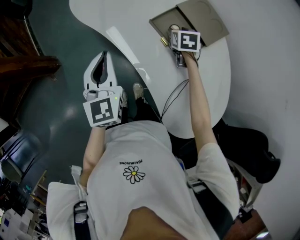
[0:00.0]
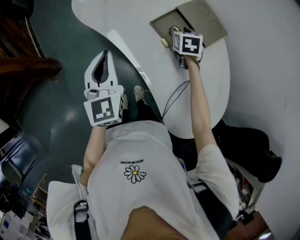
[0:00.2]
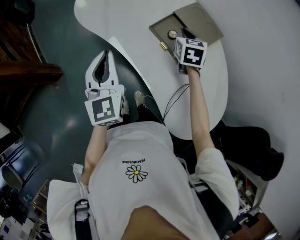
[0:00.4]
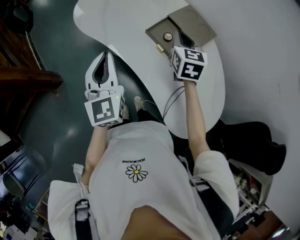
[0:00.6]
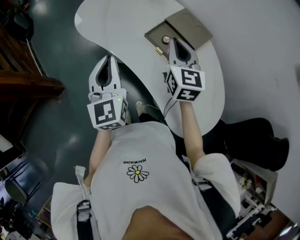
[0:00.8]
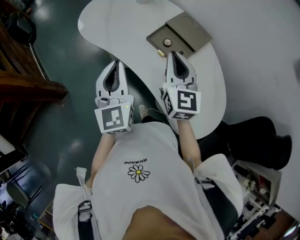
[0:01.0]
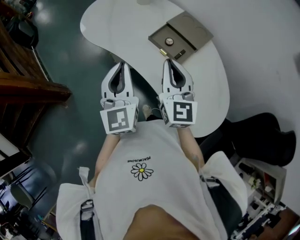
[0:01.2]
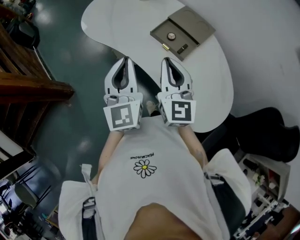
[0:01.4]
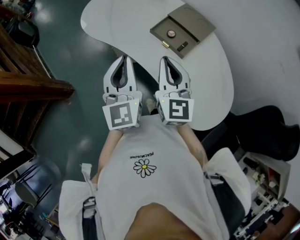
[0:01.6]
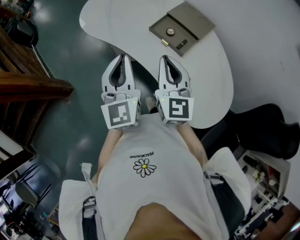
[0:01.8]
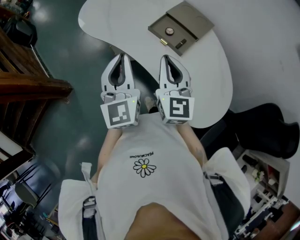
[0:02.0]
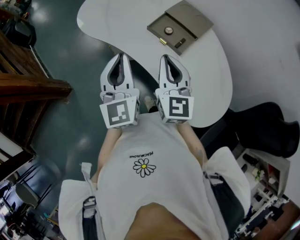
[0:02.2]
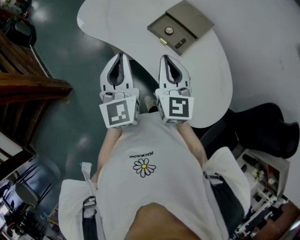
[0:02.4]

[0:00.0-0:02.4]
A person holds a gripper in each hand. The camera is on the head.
0.0 to 1.2 s: The left gripper shifts some 10 cm upward and backward; the right gripper shifts approximately 35 cm upward and backward, angles its fingers upward, by about 50 degrees, and closes.
1.2 to 2.4 s: The grippers move only a little.

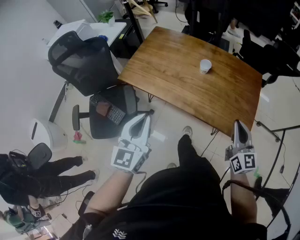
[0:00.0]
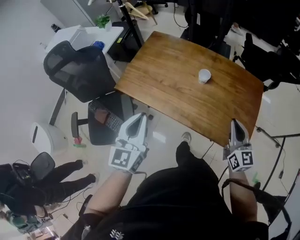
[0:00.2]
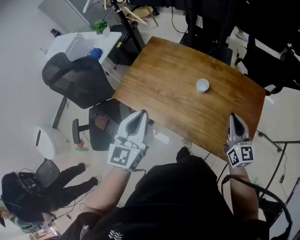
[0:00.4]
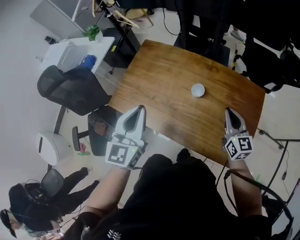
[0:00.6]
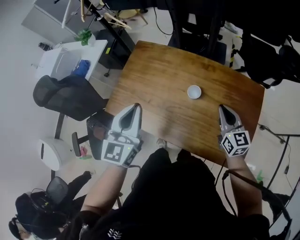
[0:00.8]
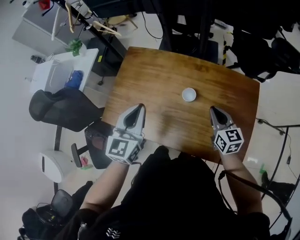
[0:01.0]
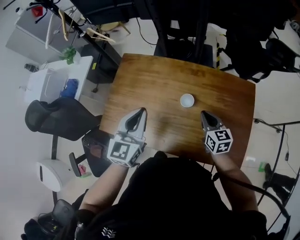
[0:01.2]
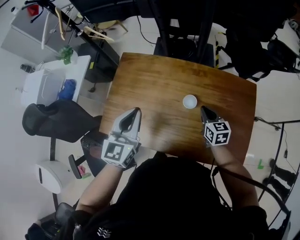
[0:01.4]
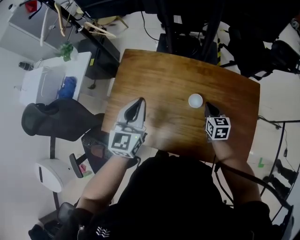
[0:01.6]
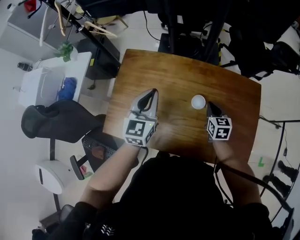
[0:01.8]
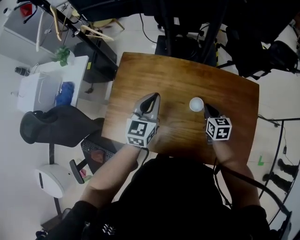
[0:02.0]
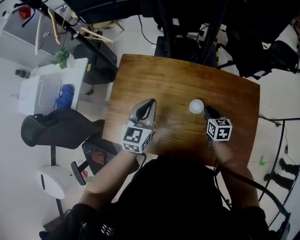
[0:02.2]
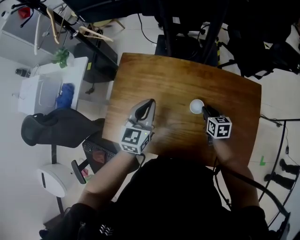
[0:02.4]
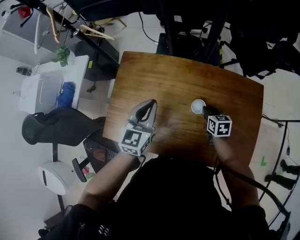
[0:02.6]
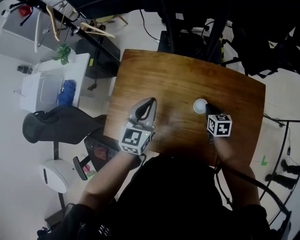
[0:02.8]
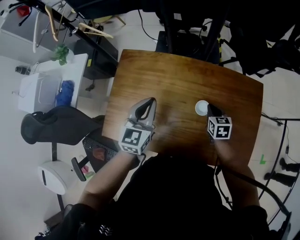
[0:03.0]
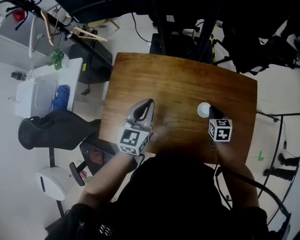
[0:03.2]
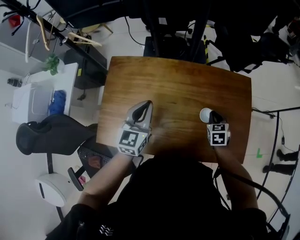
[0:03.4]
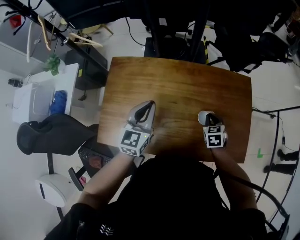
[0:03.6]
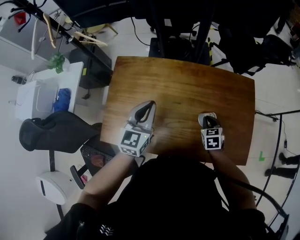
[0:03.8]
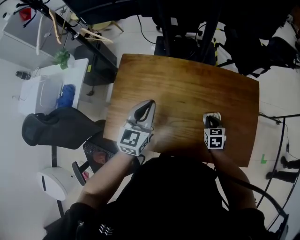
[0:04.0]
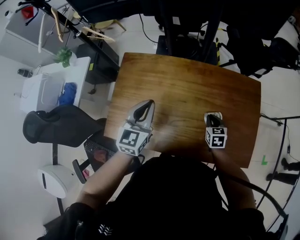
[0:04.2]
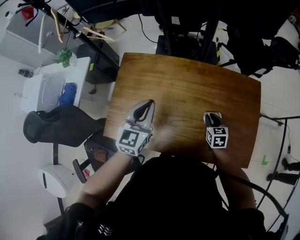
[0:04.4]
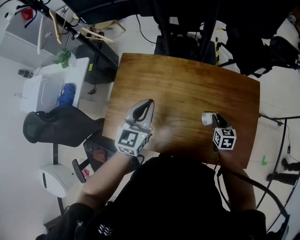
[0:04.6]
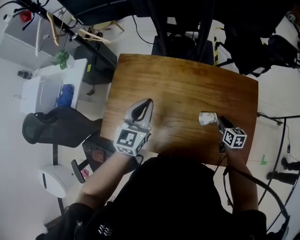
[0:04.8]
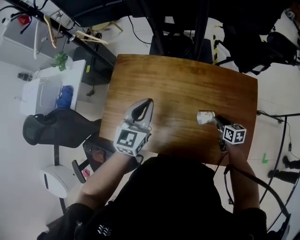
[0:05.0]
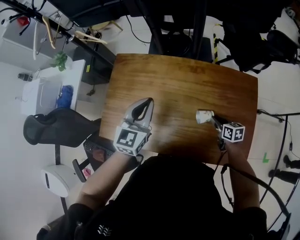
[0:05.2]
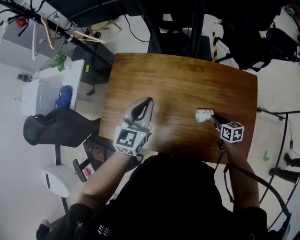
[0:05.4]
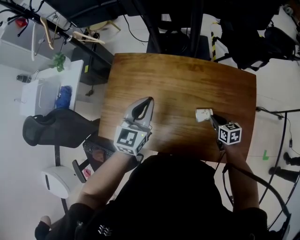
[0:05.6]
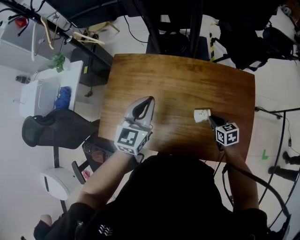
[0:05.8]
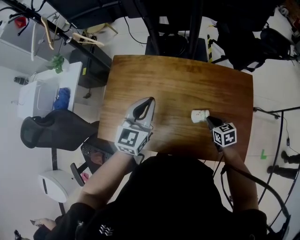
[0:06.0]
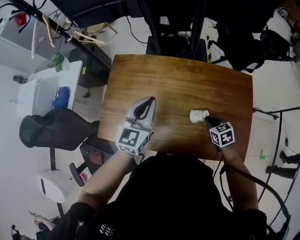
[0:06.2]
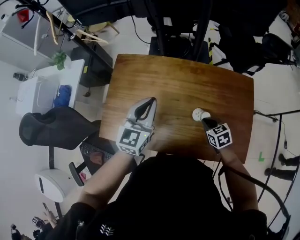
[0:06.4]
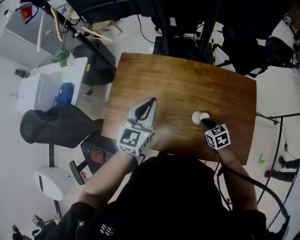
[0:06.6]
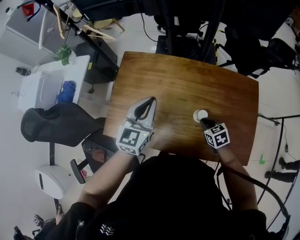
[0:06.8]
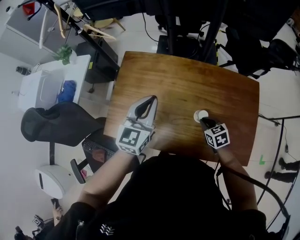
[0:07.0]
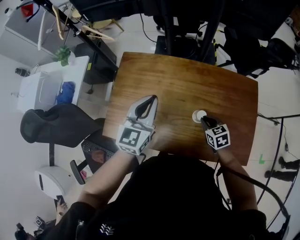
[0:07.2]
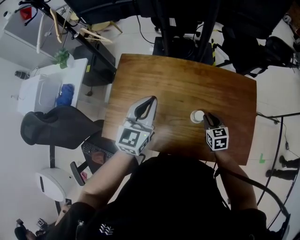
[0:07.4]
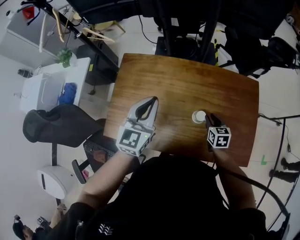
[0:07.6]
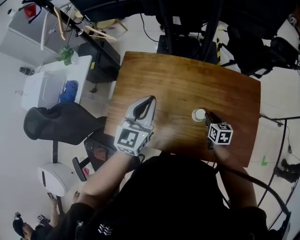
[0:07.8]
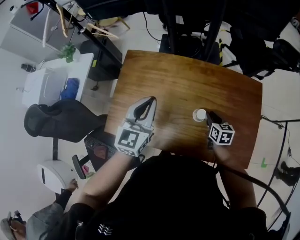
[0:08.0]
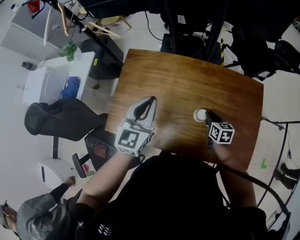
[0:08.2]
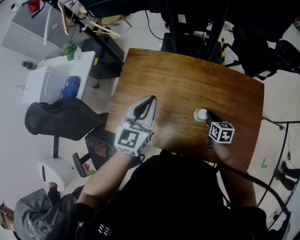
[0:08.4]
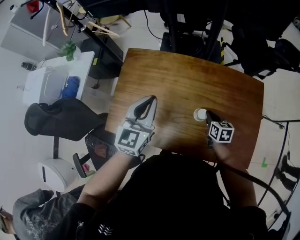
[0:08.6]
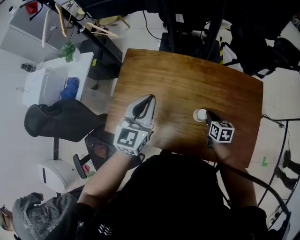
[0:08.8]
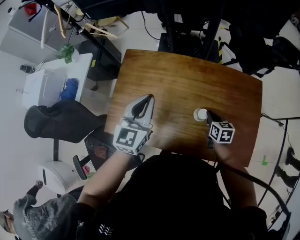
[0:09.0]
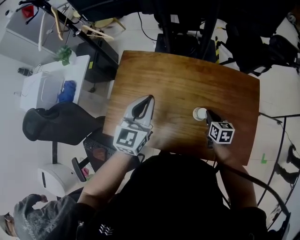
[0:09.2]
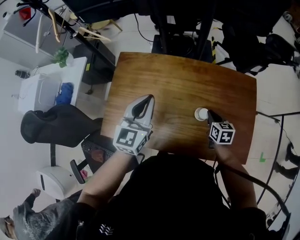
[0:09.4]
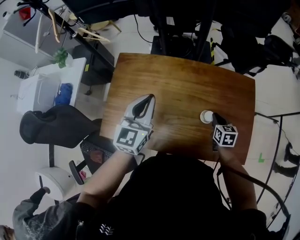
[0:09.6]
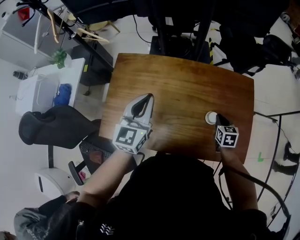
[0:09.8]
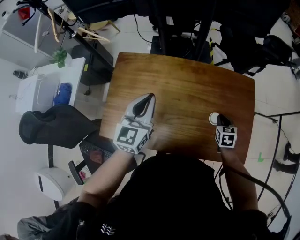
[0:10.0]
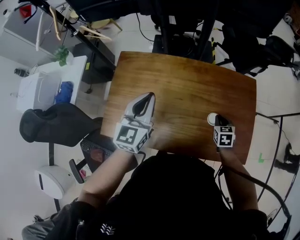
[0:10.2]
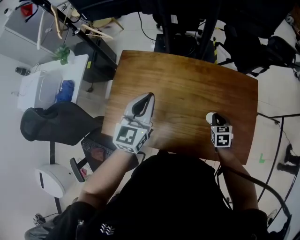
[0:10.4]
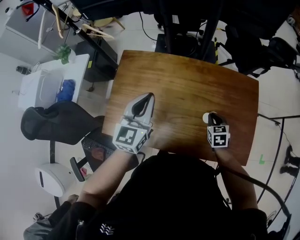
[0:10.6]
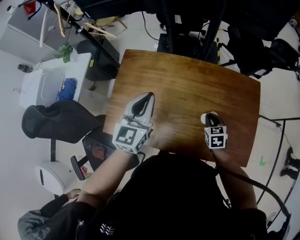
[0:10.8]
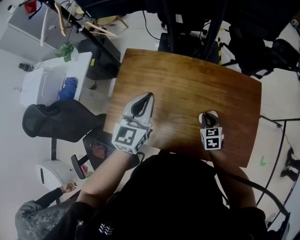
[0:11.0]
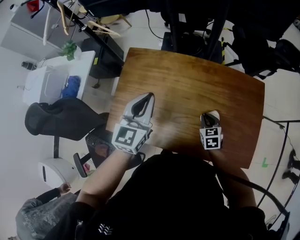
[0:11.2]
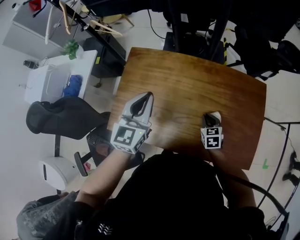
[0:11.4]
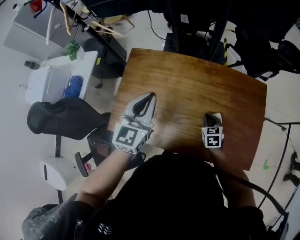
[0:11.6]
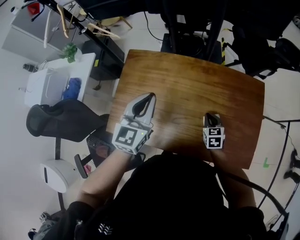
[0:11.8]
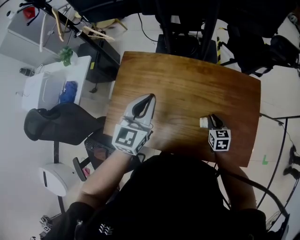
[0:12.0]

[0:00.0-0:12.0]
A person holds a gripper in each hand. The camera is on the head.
0.0 to 1.6 s: The left gripper travels forward by roughly 35 cm, while the right gripper is displaced forward and downward by approximately 35 cm, and points its fingers some 30 degrees further downward.
1.6 to 3.0 s: The left gripper heads downward, covering about 5 cm.
3.0 to 4.4 s: The right gripper shifts roughly 5 cm backward.
4.4 to 6.0 s: The left gripper shifts by about 5 cm.
6.0 to 7.6 s: The right gripper opens its fingers.
7.6 to 9.0 s: The right gripper closes.
9.0 to 10.4 s: The right gripper goes about 5 cm to the right, and rotates approximately 30 degrees.
10.4 to 12.0 s: The right gripper moves approximately 10 cm to the left and comes back.

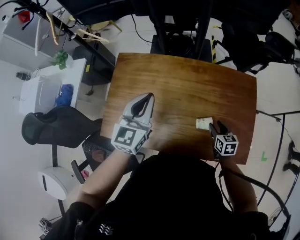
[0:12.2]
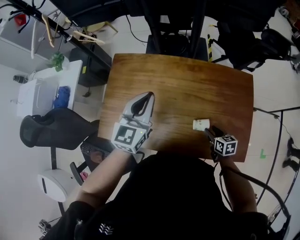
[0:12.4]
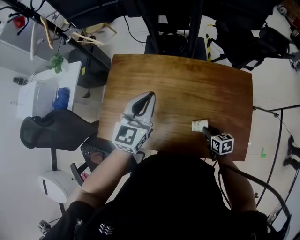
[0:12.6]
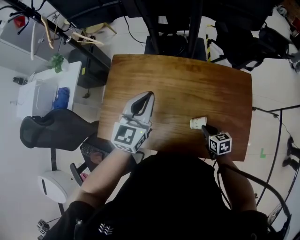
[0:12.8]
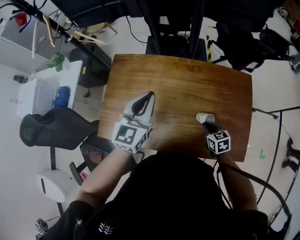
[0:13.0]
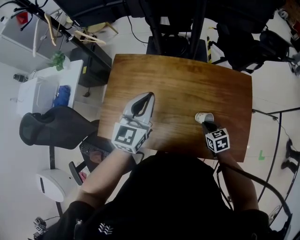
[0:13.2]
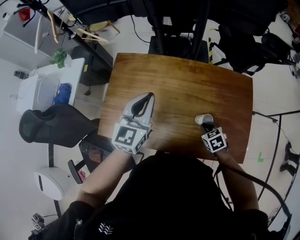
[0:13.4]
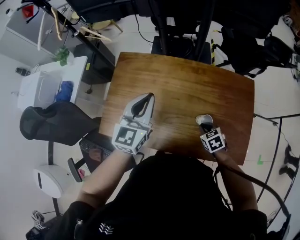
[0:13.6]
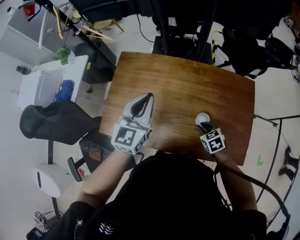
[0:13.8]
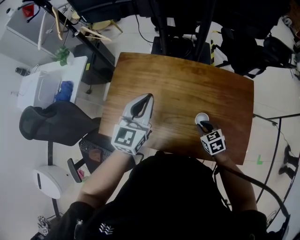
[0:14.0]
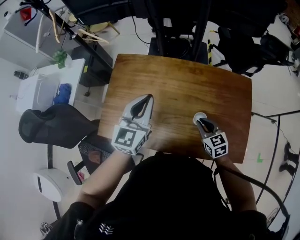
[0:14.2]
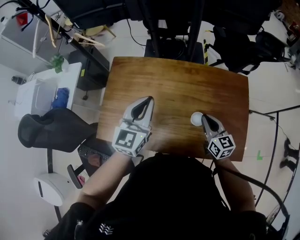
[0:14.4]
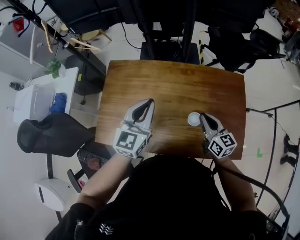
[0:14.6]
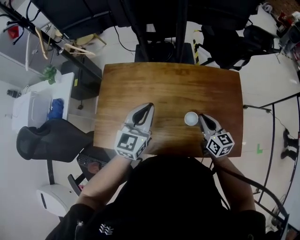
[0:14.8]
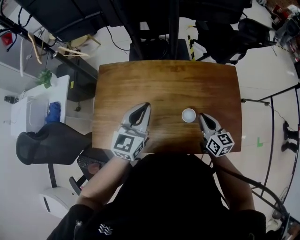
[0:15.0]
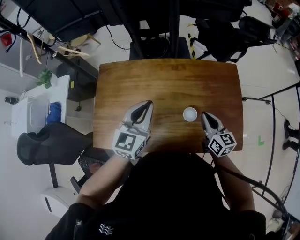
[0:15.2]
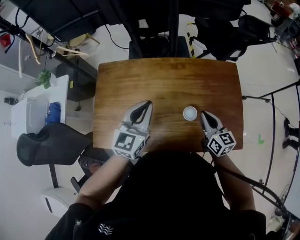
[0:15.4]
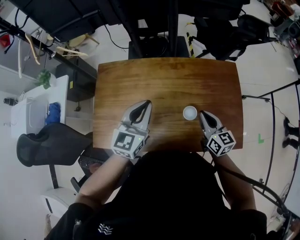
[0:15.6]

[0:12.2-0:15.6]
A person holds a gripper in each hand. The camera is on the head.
12.2 to 13.8 s: The right gripper is displaced to the left by roughly 10 cm, changes its angle by roughly 30 degrees, and closes up.
13.8 to 15.6 s: The left gripper is displaced to the right by approximately 5 cm. The right gripper heads upward, covering some 10 cm, and tips its fingers upward by some 40 degrees.

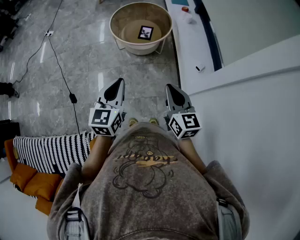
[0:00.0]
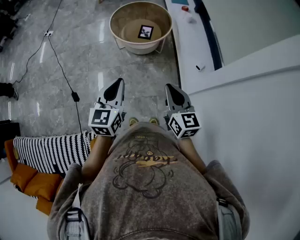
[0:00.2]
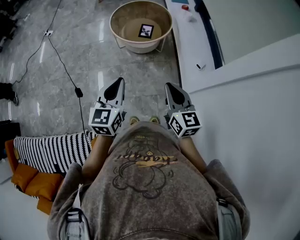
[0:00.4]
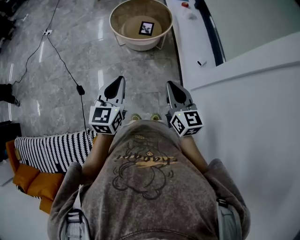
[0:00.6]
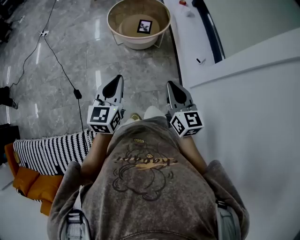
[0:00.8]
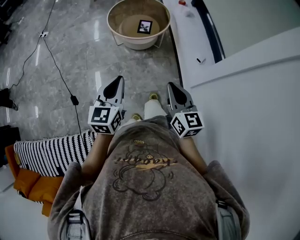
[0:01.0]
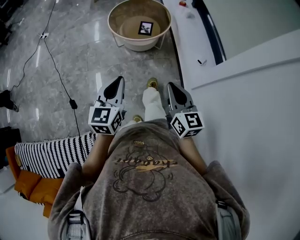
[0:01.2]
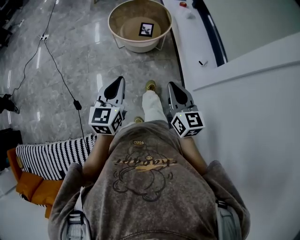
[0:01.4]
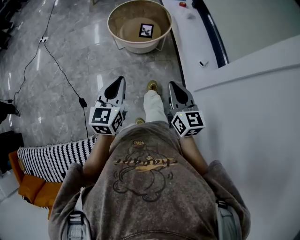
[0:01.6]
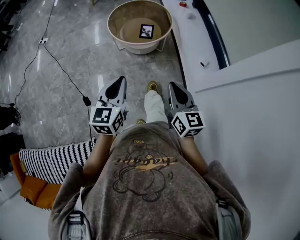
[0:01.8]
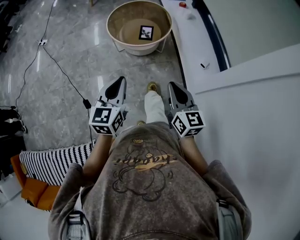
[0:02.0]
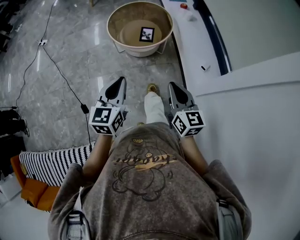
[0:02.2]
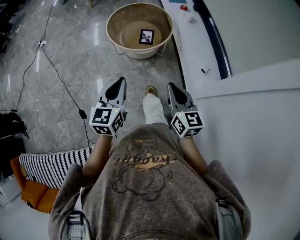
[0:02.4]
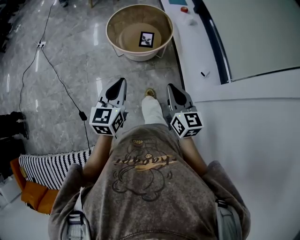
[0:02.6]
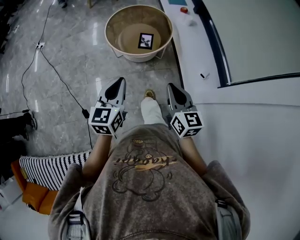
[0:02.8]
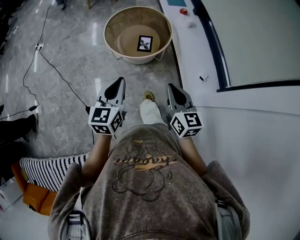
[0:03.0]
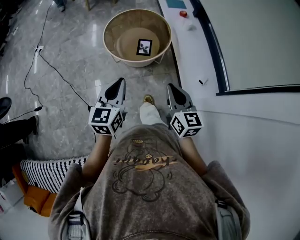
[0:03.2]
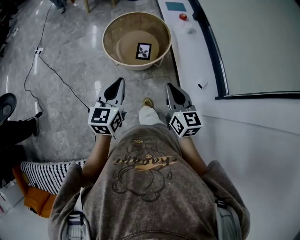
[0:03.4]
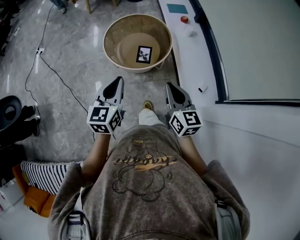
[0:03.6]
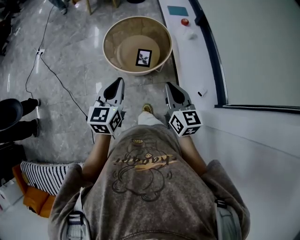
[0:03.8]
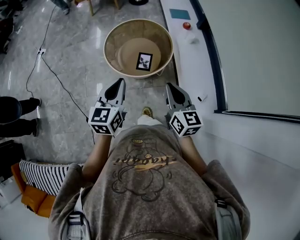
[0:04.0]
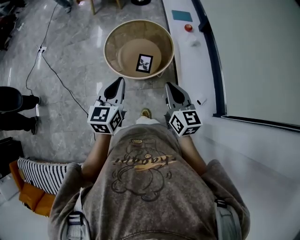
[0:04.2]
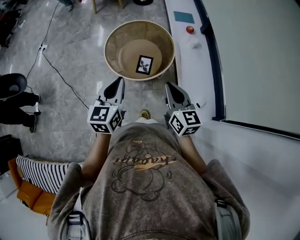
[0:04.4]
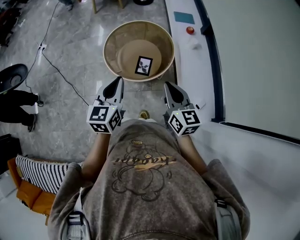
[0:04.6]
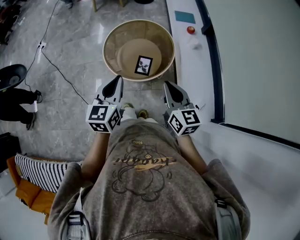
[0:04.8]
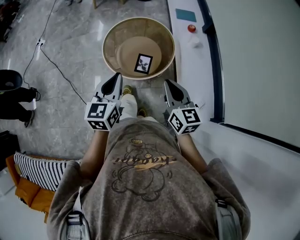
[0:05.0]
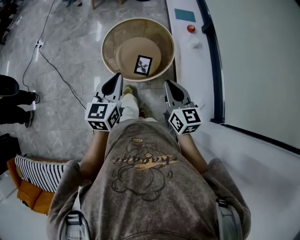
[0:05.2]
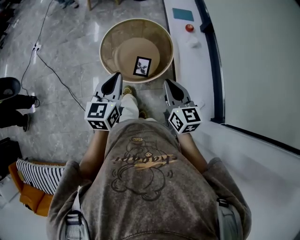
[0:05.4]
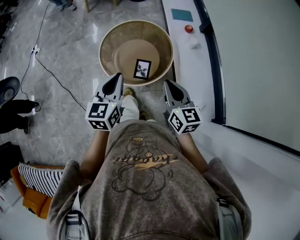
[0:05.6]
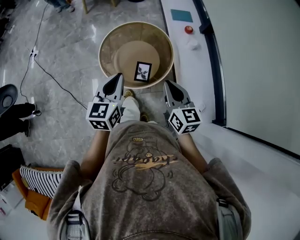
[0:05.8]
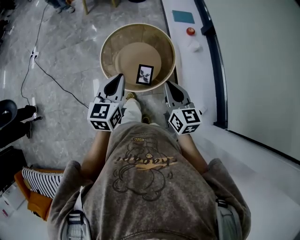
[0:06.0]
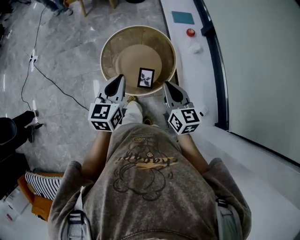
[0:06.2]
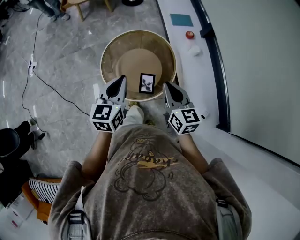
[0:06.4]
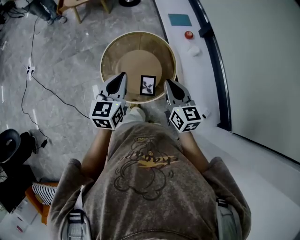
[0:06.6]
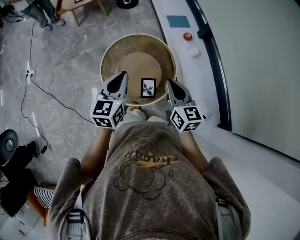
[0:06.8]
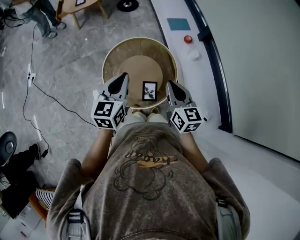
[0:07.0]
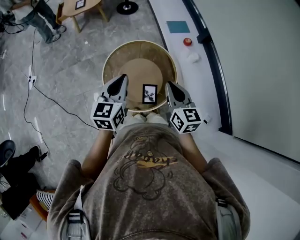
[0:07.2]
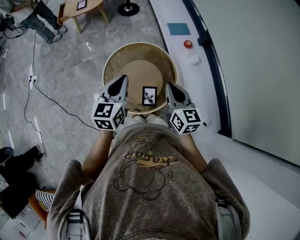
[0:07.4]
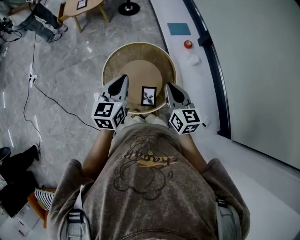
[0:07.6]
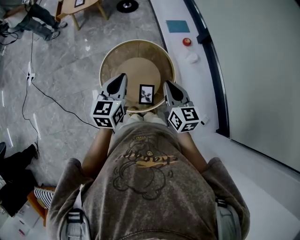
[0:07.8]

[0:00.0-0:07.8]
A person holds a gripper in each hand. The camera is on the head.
0.0 to 1.6 s: The left gripper changes place by approximately 5 cm.
1.6 to 3.2 s: Both grippers move forward, roughly 20 cm.
3.2 to 4.6 s: The grippers both shift forward by approximately 15 cm.
4.6 to 6.2 s: Both grippers move forward, roughly 15 cm.
6.2 to 7.8 s: The grippers both shift forward by about 10 cm.
